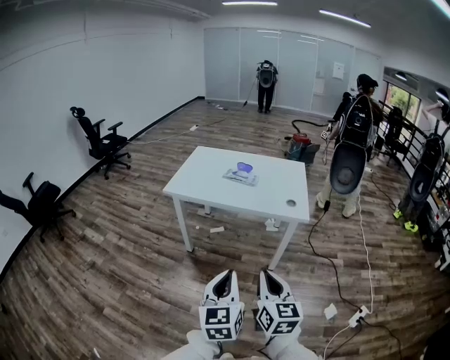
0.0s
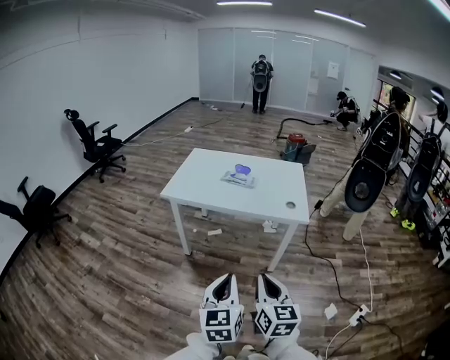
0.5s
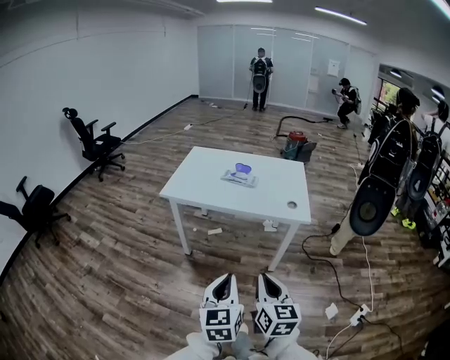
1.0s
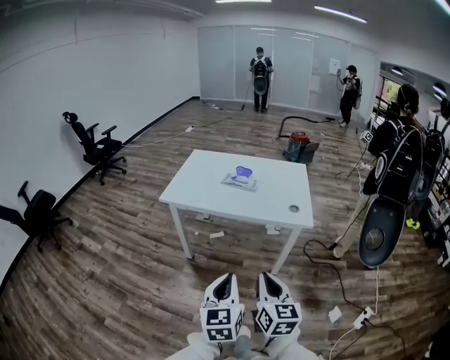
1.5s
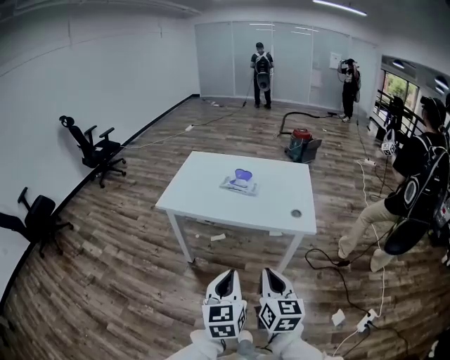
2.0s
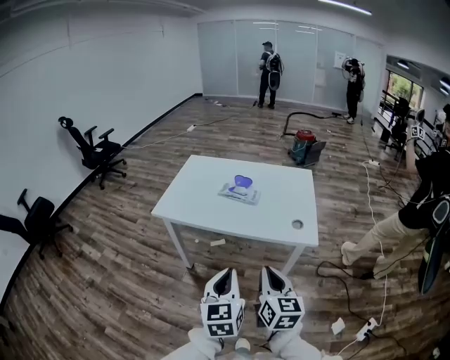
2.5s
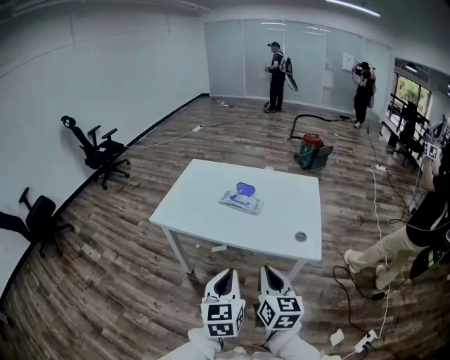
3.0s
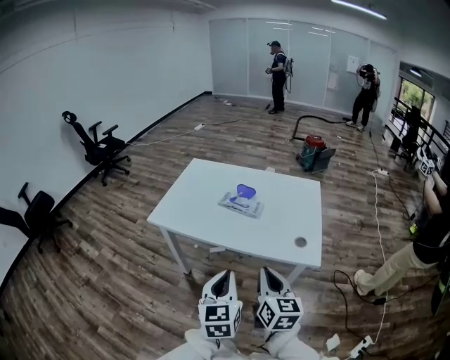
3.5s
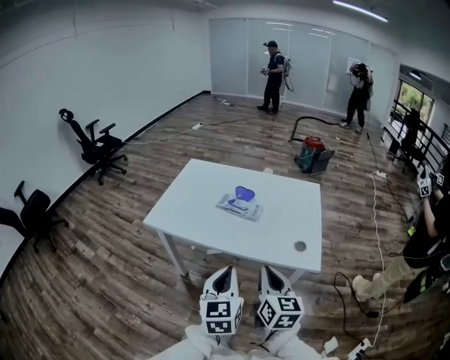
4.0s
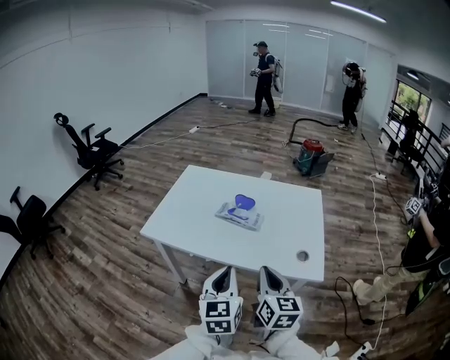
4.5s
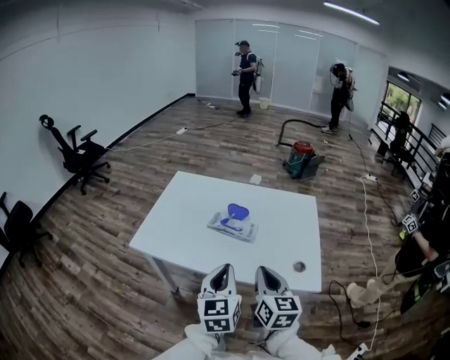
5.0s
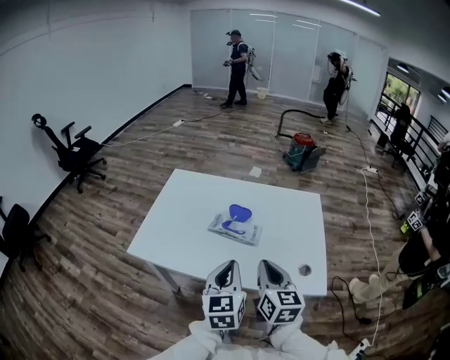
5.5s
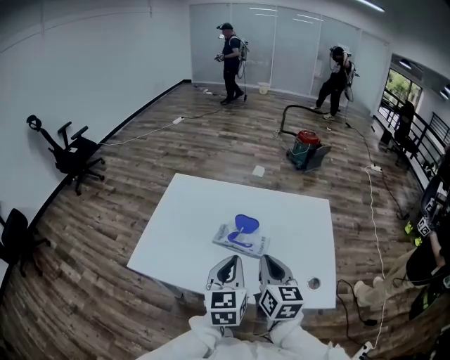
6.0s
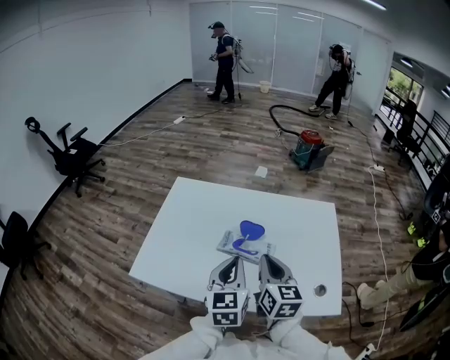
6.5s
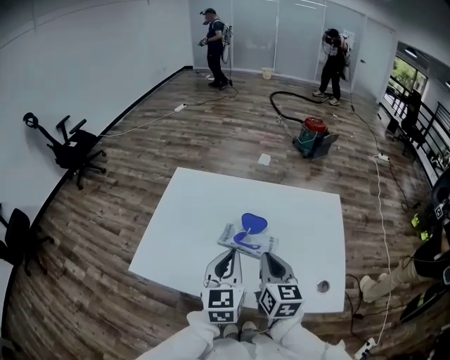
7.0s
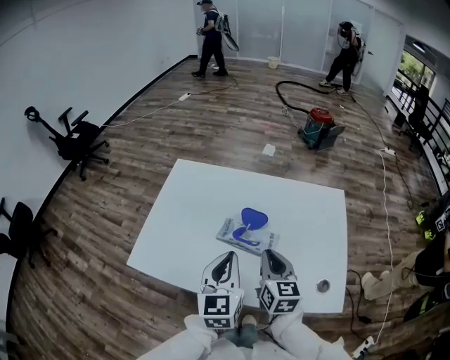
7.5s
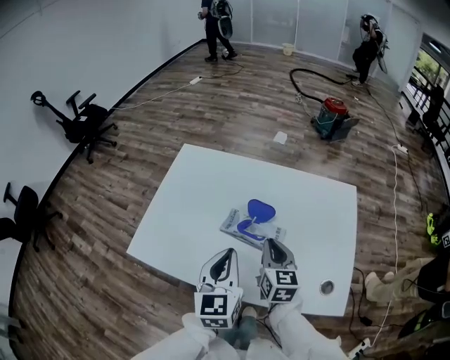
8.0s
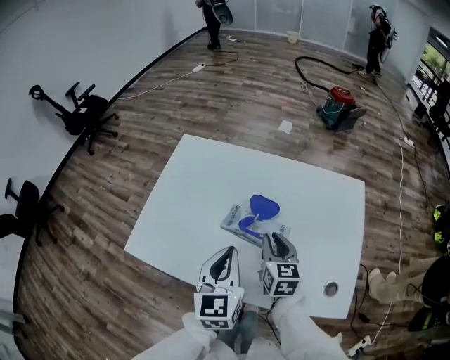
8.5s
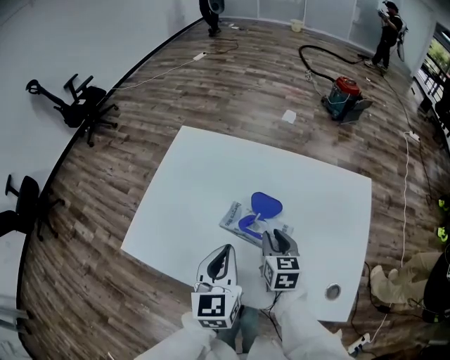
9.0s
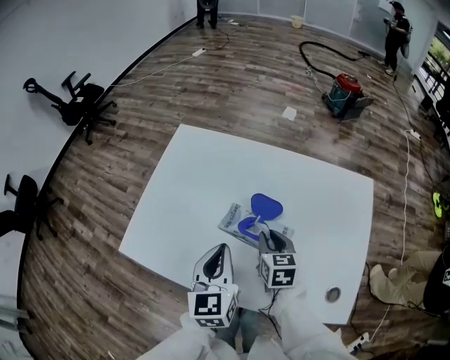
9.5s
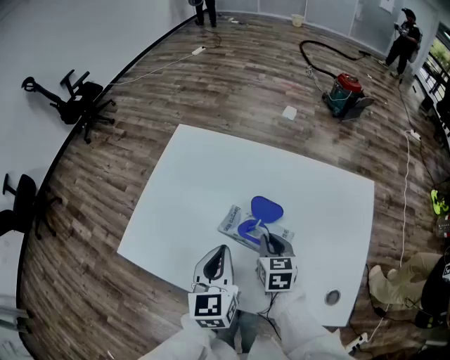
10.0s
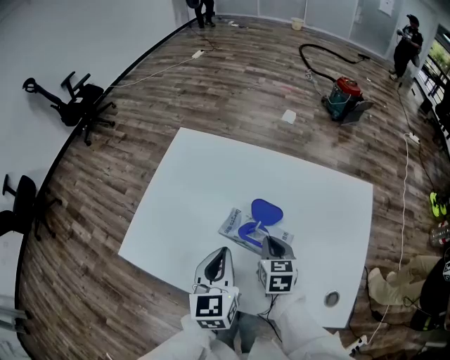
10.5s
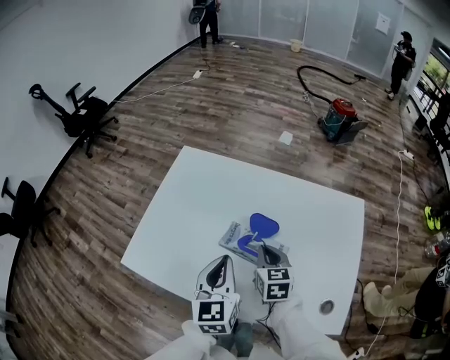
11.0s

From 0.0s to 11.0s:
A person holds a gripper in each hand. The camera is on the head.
From 0.0s to 2.0s: Both grippers travel together forward, approximately 15 cm.
From 2.0s to 3.5s: The grippers both shift forward by roughly 15 cm.
From 3.5s to 5.5s: Both grippers travel together forward, about 20 cm.
From 5.5s to 7.5s: The right gripper travels forward and downward by approximately 15 cm. The left gripper moves forward, approximately 10 cm.
From 7.5s to 9.0s: The right gripper shifts roughly 15 cm downward and forward; the left gripper heads downward, covering about 5 cm.
From 9.0s to 11.0s: There are only small adjustments of the grippers.

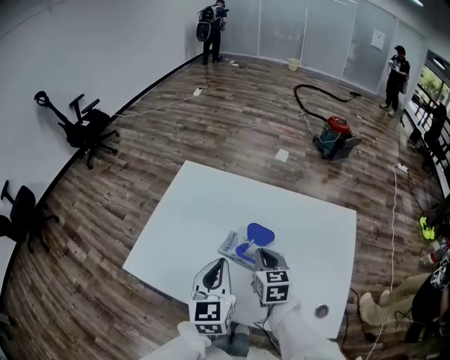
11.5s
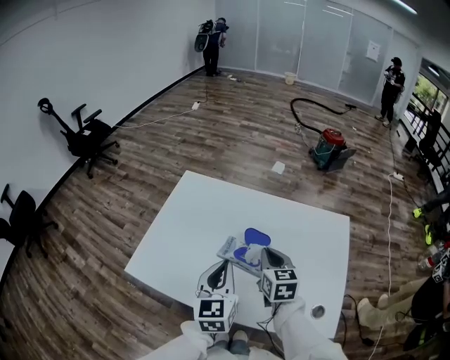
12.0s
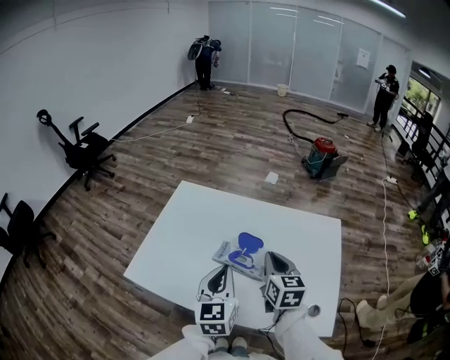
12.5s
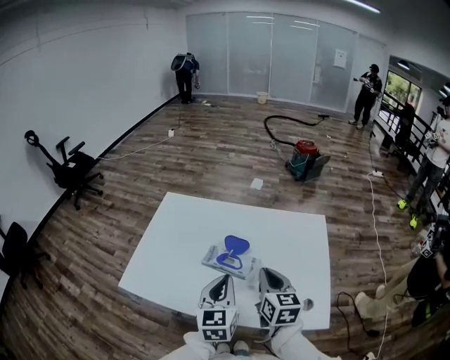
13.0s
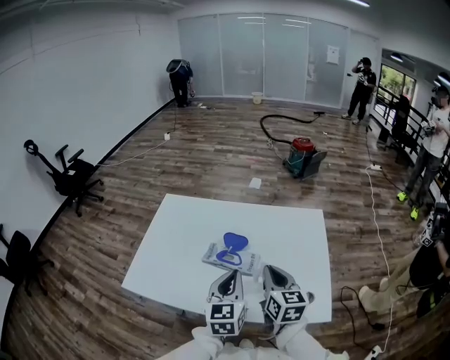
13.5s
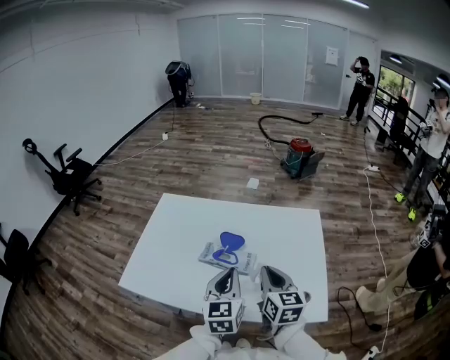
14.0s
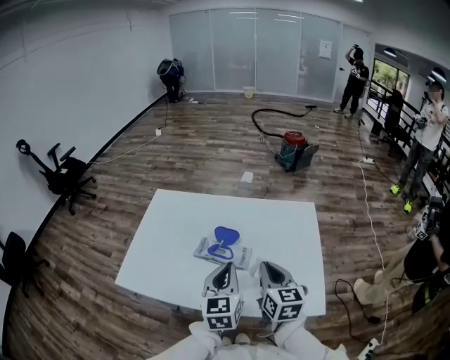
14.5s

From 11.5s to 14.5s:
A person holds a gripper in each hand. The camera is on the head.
From 11.5s to 13.0s: The left gripper shifts roughly 10 cm to the right and backward. The right gripper shifts approximately 15 cm backward, upward and to the right.
From 13.0s to 14.5s: The grippers make only small movements.

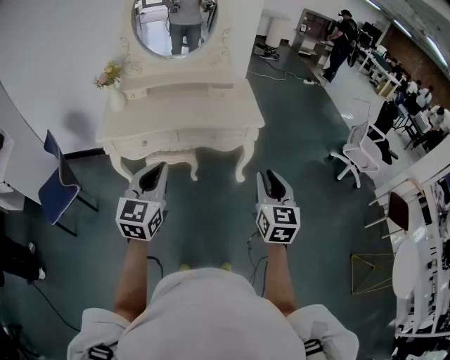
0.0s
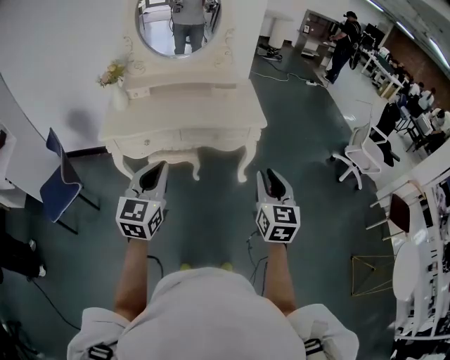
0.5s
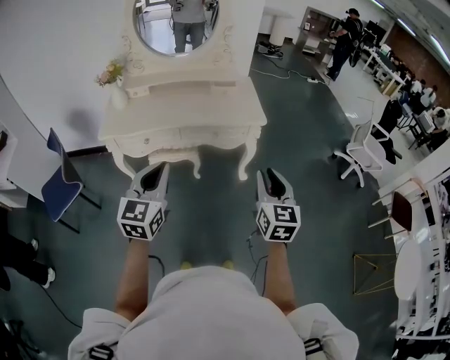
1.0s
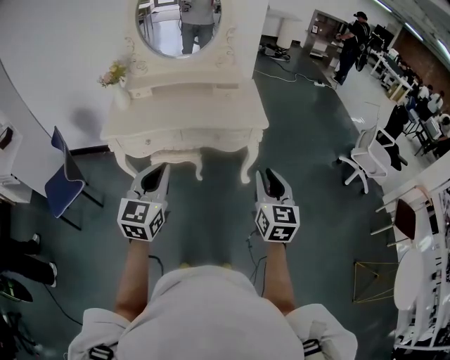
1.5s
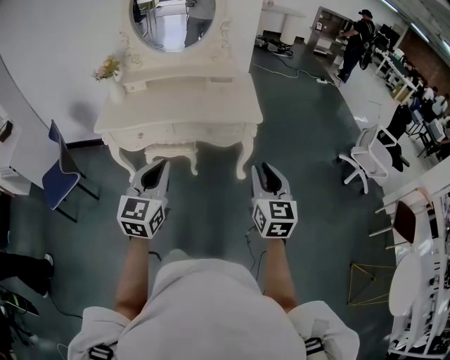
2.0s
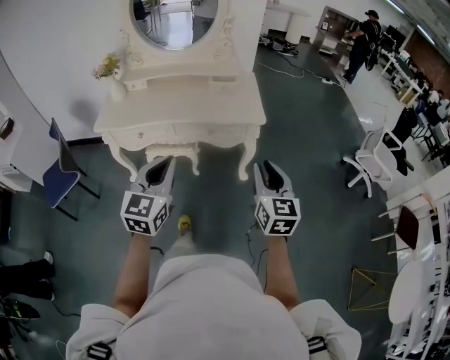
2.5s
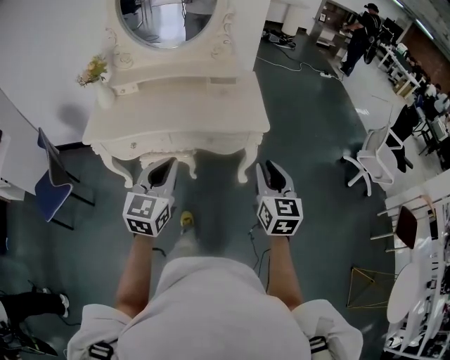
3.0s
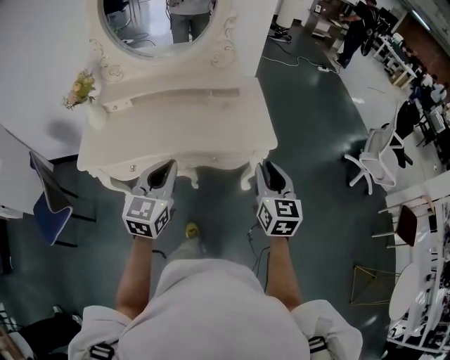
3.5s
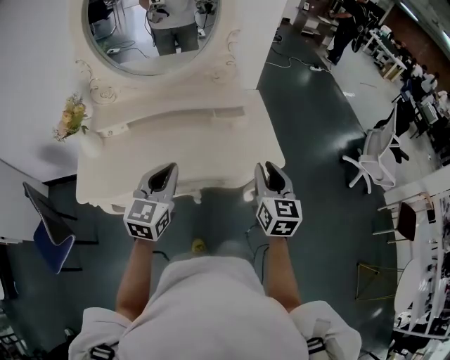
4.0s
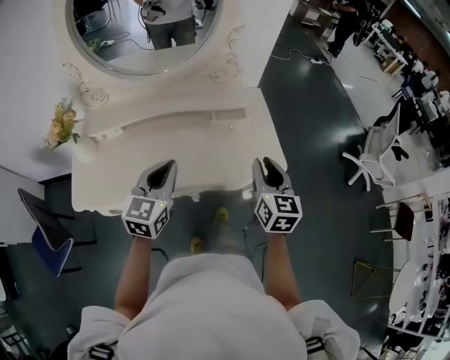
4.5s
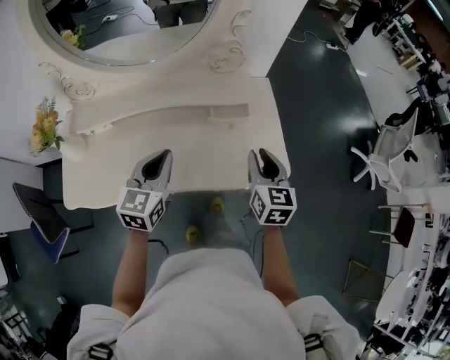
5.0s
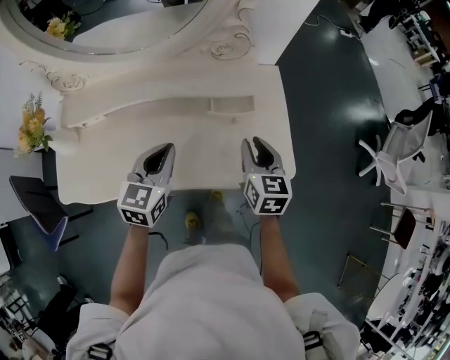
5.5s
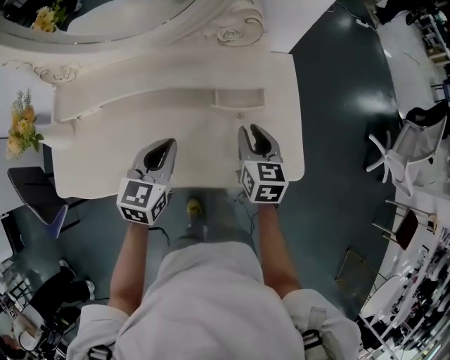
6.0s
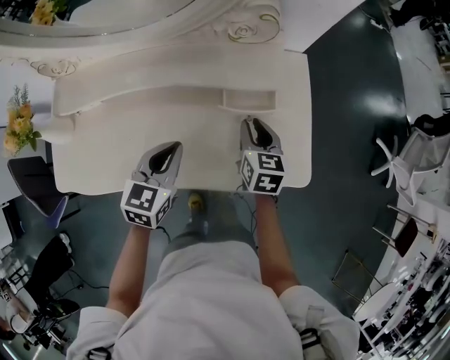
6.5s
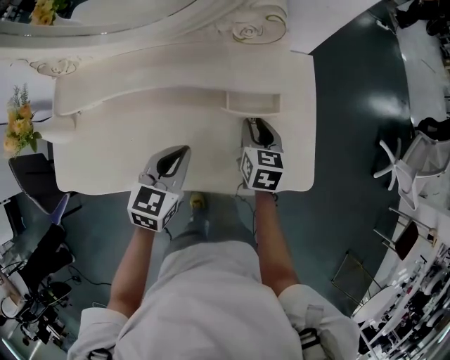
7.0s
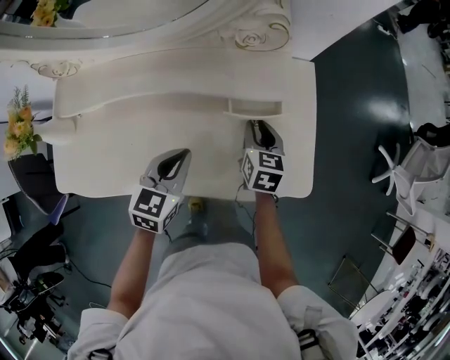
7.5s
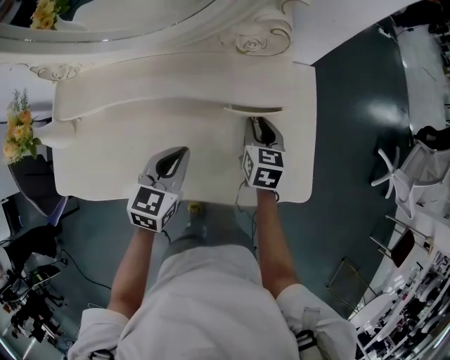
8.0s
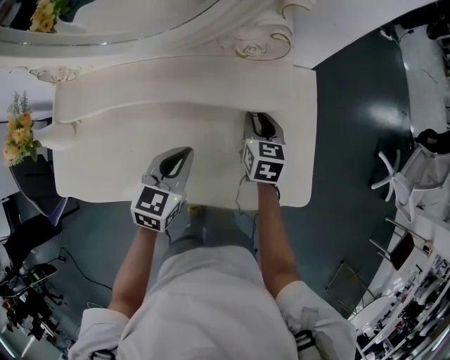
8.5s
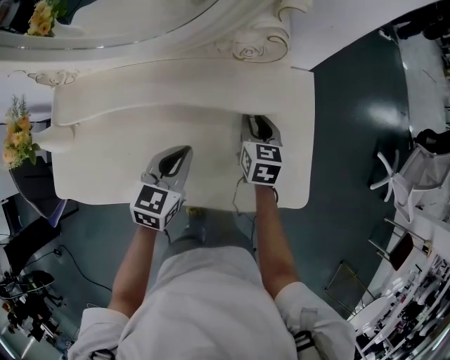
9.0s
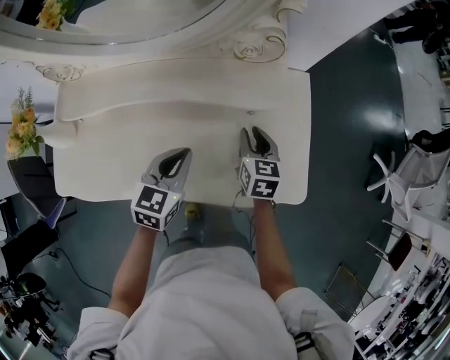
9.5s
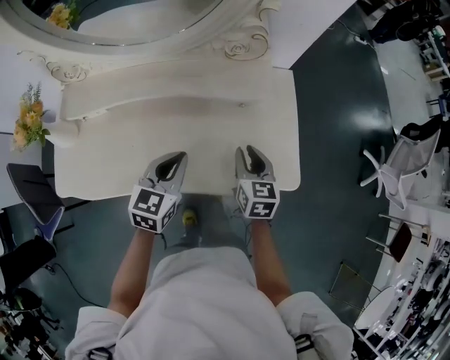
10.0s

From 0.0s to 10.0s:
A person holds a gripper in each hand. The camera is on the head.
From 0.0s to 2.0s: The two grippers go approximately 10 cm to the right.
From 2.0s to 4.0s: The two grippers travel together, forward, roughly 40 cm.
From 4.0s to 6.0s: The grippers both shift forward and downward by approximately 30 cm. The right gripper swivels approximately 20 degrees.
From 6.0s to 8.0s: The left gripper shifts by about 5 cm, while the right gripper moves forward and downward, about 10 cm.
From 8.0s to 10.0s: The right gripper travels backward and upward by some 15 cm; the left gripper goes roughly 5 cm backward.

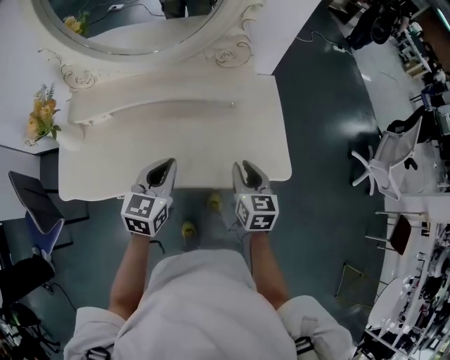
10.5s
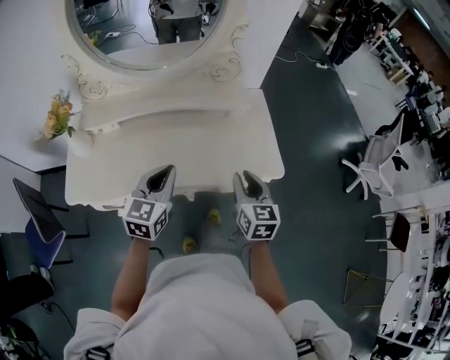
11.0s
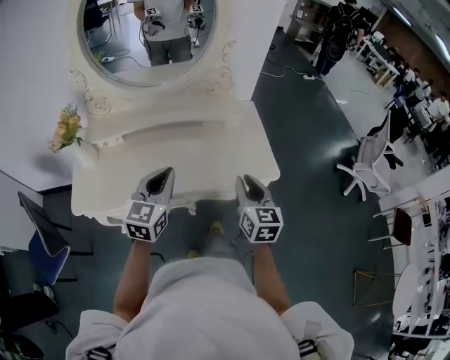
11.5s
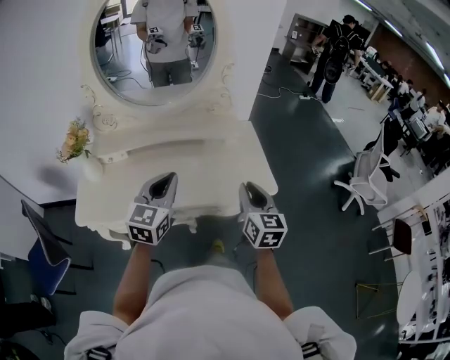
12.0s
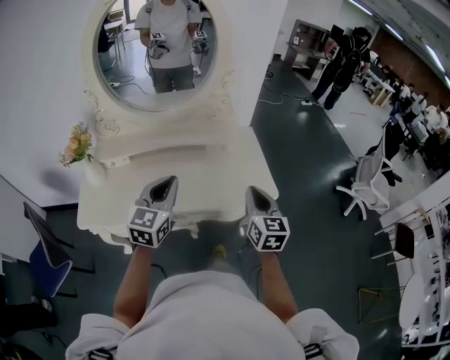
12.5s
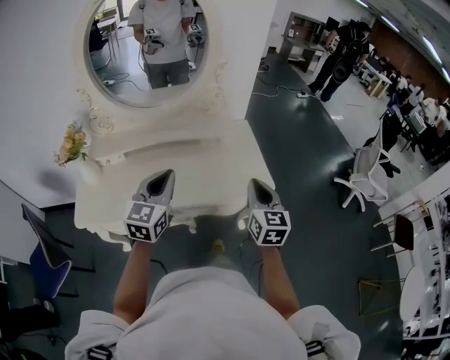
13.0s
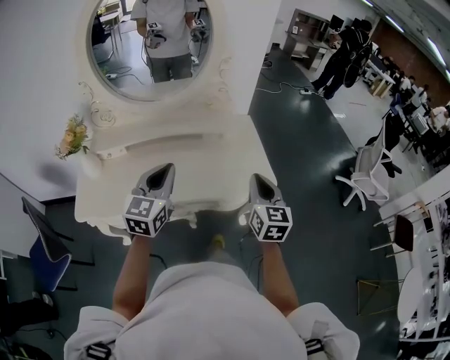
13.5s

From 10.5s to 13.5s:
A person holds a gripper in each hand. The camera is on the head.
From 10.5s to 12.0s: The grippers both shift upward and backward by about 20 cm.
From 12.0s to 13.5s: The grippers move only a little.
